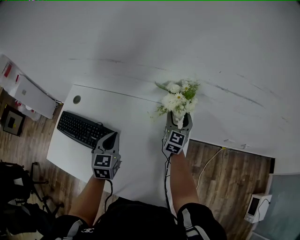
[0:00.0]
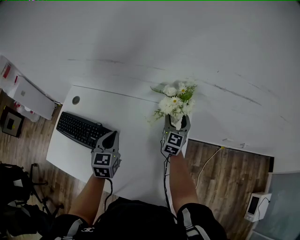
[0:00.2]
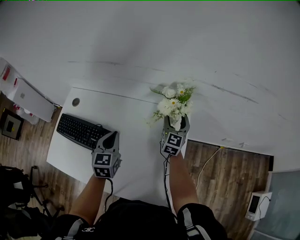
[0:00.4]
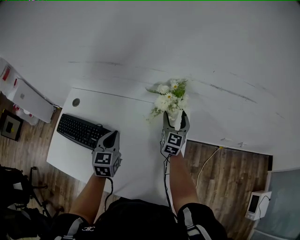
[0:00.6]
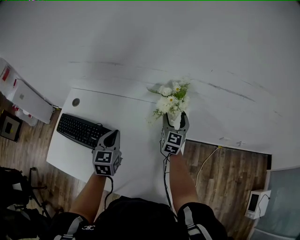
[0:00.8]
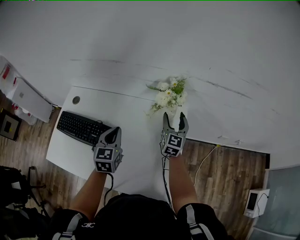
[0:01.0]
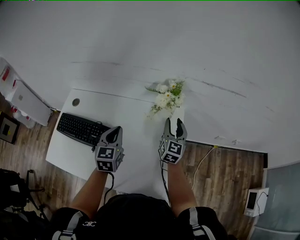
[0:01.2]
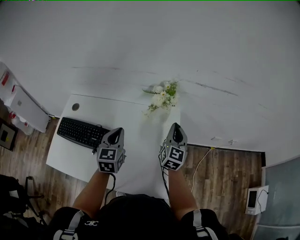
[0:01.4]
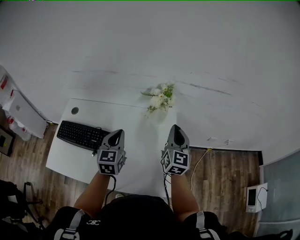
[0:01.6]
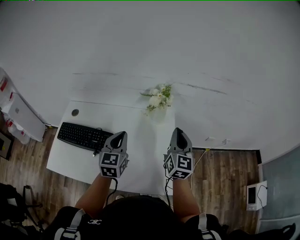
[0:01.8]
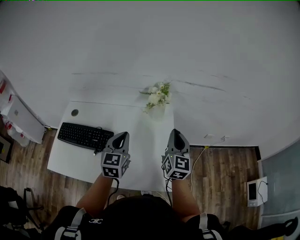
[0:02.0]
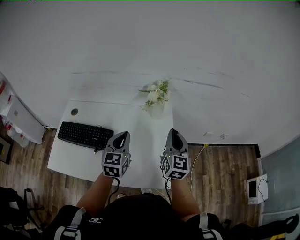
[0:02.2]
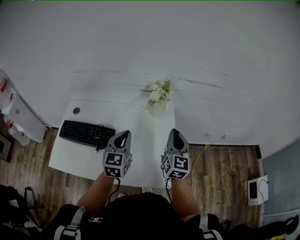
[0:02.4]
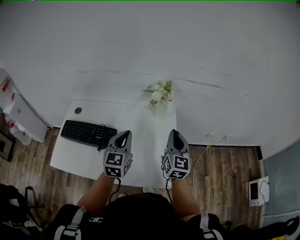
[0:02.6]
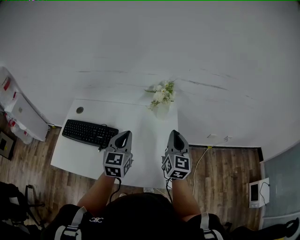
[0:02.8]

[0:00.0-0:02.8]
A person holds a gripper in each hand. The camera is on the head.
0.0 to 1.4 s: The left gripper moves upward and backward, roughly 10 cm. The right gripper travels backward and upward by some 20 cm, and closes up.
1.4 to 2.8 s: Both grippers travel together backward and upward, approximately 15 cm.

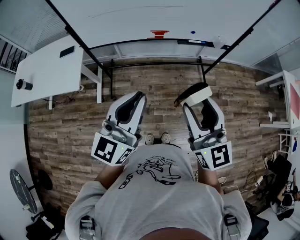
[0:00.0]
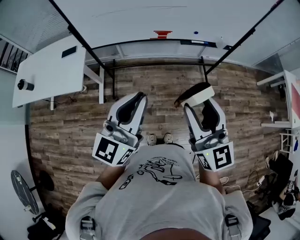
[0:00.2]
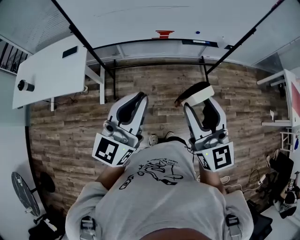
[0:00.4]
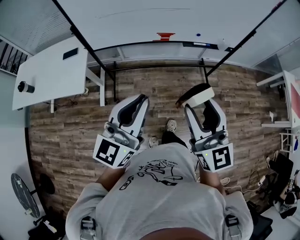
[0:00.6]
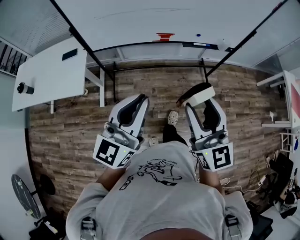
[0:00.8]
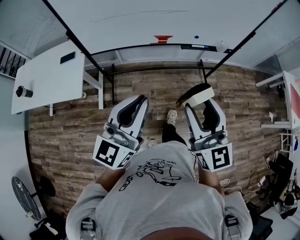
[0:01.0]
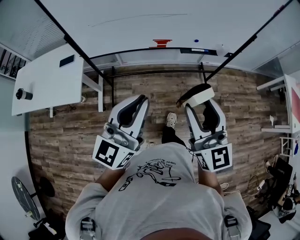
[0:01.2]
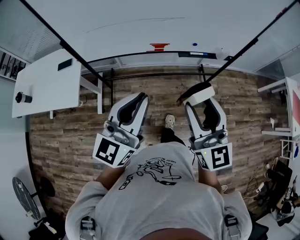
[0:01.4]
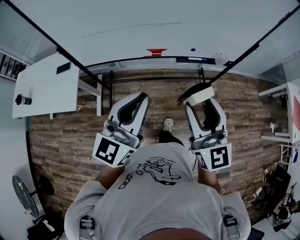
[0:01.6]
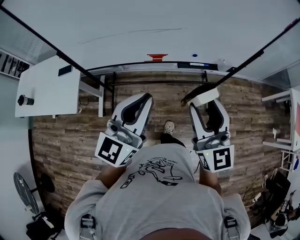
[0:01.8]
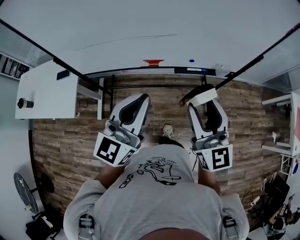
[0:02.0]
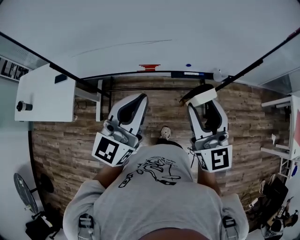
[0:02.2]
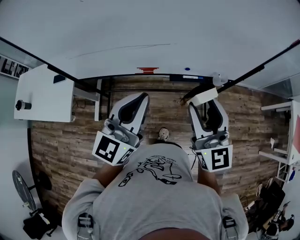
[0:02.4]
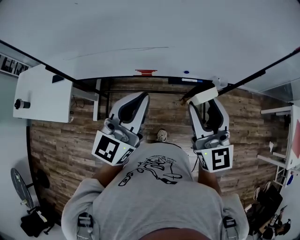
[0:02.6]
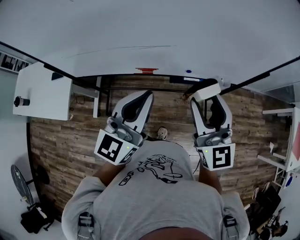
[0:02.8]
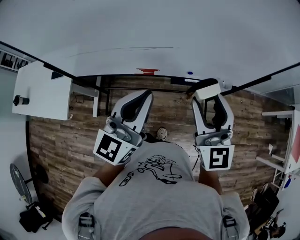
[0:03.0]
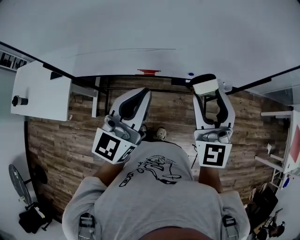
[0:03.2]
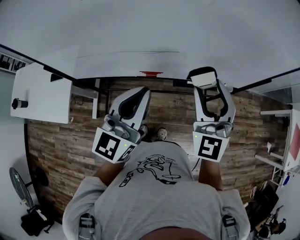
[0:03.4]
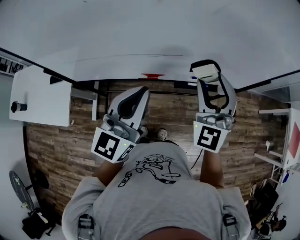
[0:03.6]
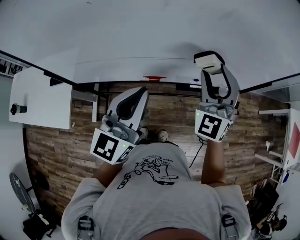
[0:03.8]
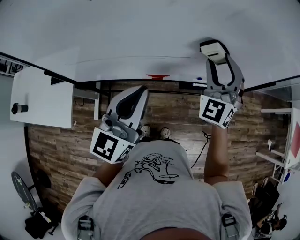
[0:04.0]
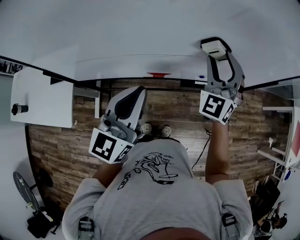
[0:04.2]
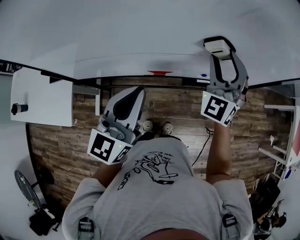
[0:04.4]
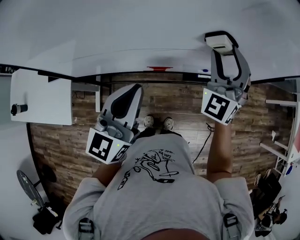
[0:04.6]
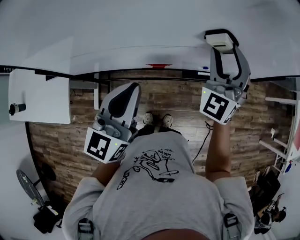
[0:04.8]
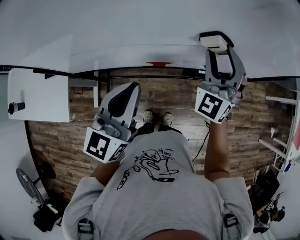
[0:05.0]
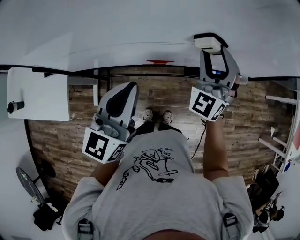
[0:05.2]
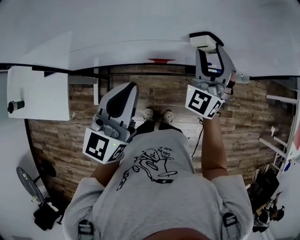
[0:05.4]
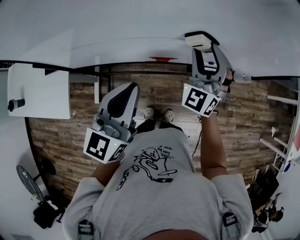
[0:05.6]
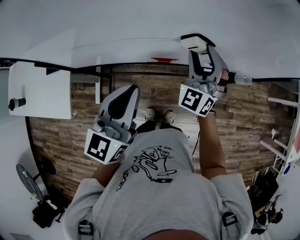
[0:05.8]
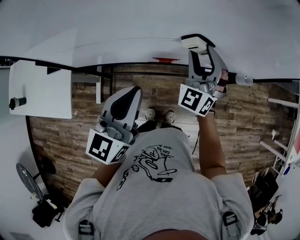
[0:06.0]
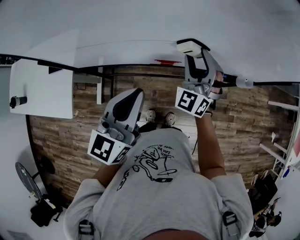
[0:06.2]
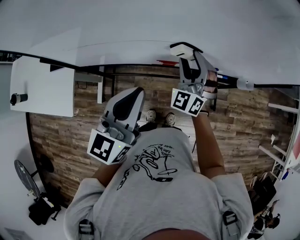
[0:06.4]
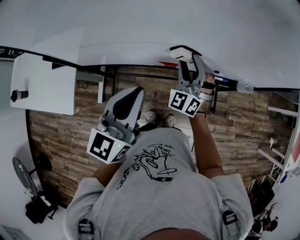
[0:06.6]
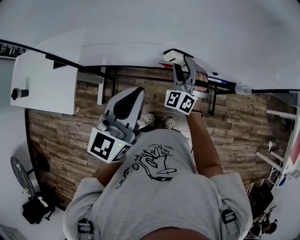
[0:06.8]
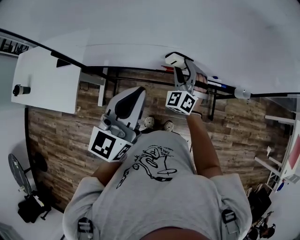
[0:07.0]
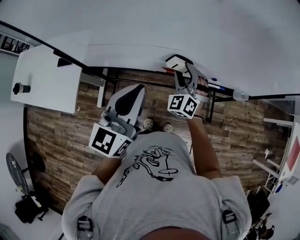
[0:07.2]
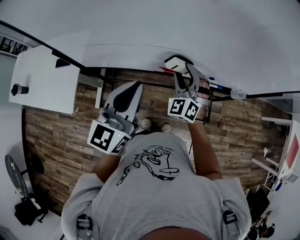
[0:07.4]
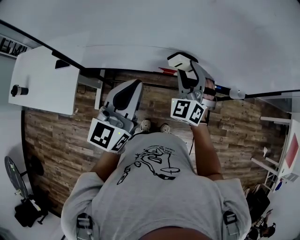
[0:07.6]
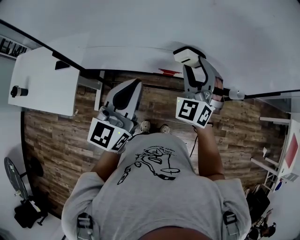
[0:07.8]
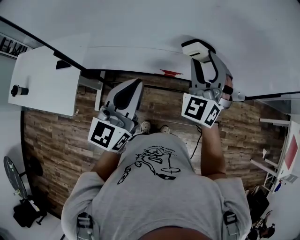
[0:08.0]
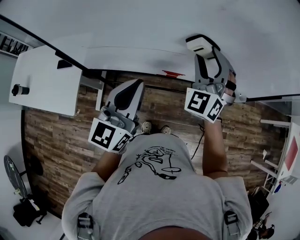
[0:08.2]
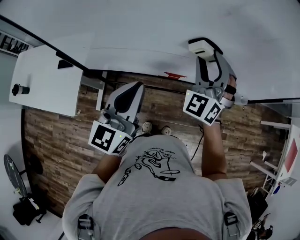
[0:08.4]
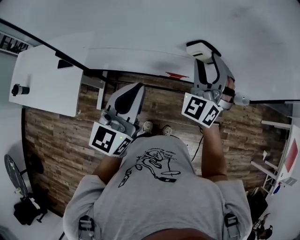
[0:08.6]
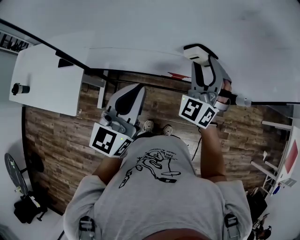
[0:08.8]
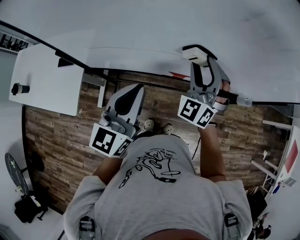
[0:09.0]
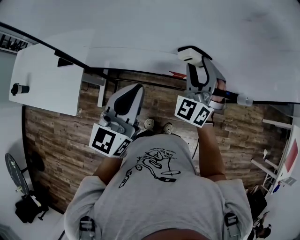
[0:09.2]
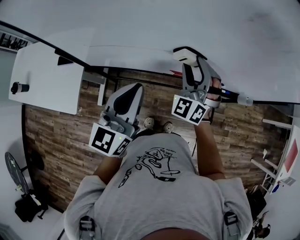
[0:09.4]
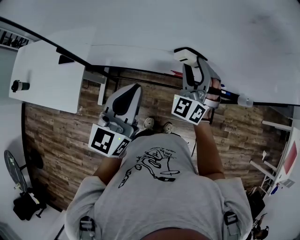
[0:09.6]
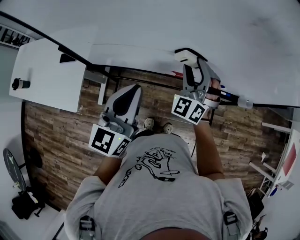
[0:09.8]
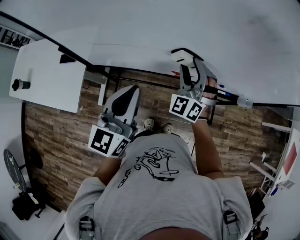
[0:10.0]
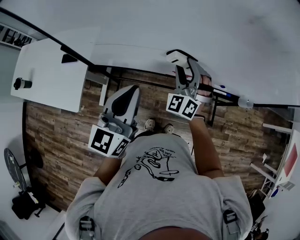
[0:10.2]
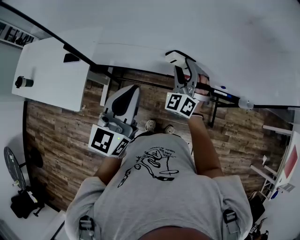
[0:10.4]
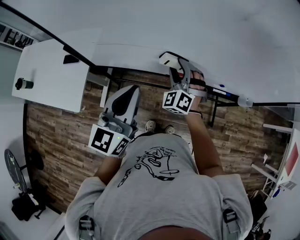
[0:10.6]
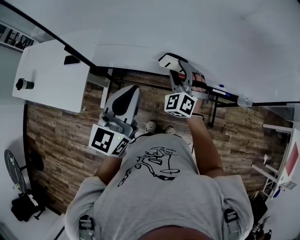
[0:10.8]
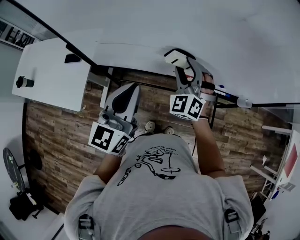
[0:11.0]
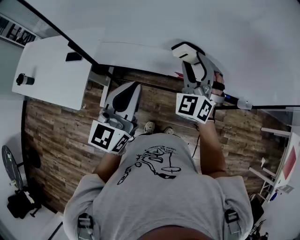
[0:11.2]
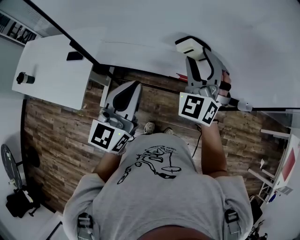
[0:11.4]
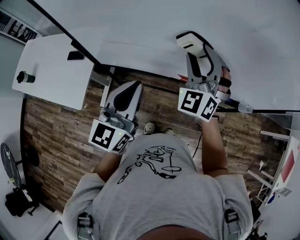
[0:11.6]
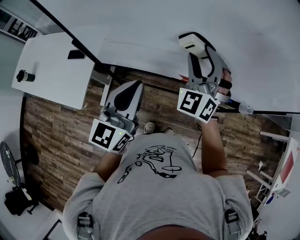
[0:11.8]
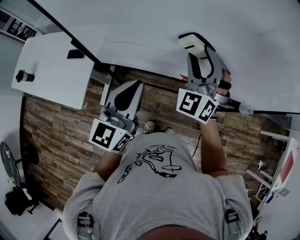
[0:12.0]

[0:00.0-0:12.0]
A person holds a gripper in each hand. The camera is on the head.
0.0 to 1.6 s: Both grippers travel together forward, about 15 cm.
1.6 to 3.0 s: The left gripper moves forward and to the right, roughly 20 cm. Meanwhile the right gripper moves forward, about 20 cm.
3.0 to 4.4 s: The right gripper heads forward, covering about 15 cm, and turns by approximately 40 degrees. The left gripper is displaced to the left by about 10 cm.
4.4 to 6.0 s: The left gripper moves roughly 5 cm; the right gripper moves downward and to the left, approximately 15 cm.
6.0 to 7.6 s: The right gripper shifts approximately 10 cm backward and to the left, and travels downward and back again, approximately 10 cm each way.
9.0 to 10.4 s: The right gripper is displaced downward and to the left by some 10 cm.
10.4 to 12.0 s: The right gripper heads upward, covering some 15 cm.

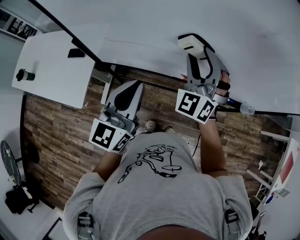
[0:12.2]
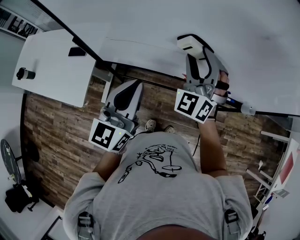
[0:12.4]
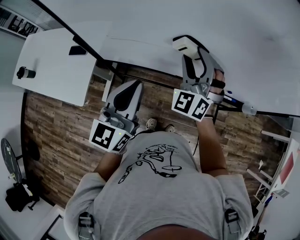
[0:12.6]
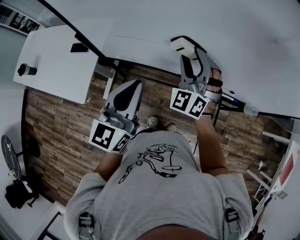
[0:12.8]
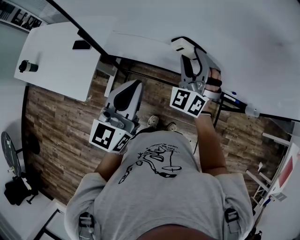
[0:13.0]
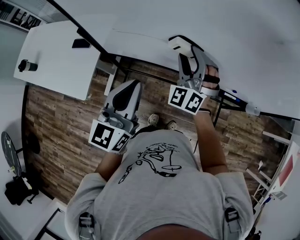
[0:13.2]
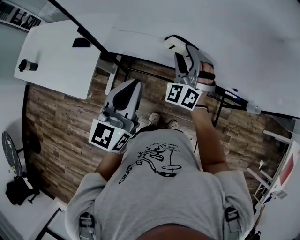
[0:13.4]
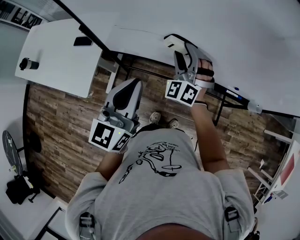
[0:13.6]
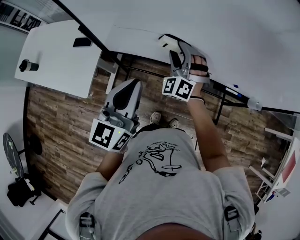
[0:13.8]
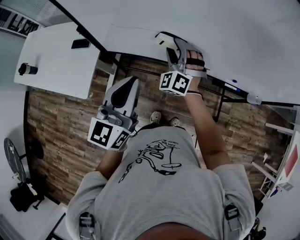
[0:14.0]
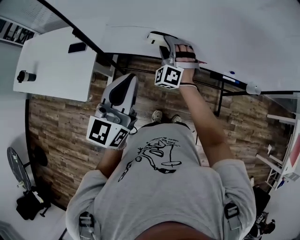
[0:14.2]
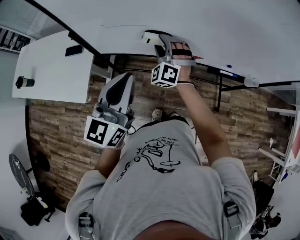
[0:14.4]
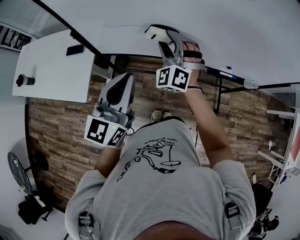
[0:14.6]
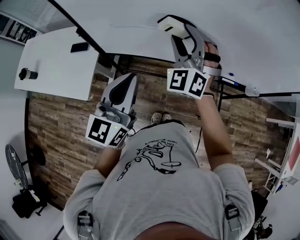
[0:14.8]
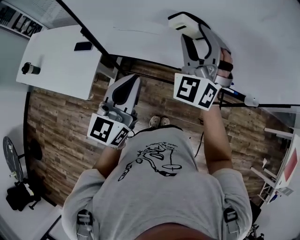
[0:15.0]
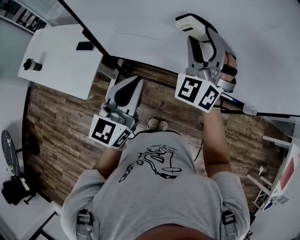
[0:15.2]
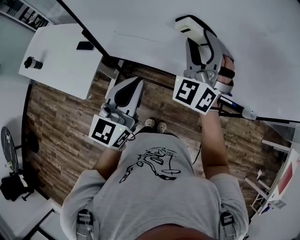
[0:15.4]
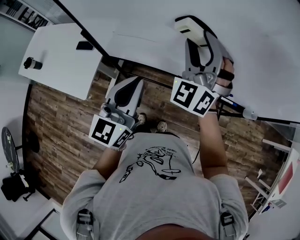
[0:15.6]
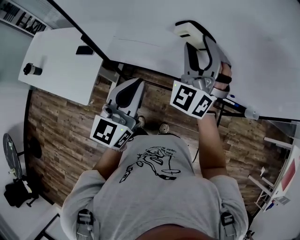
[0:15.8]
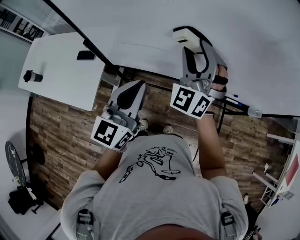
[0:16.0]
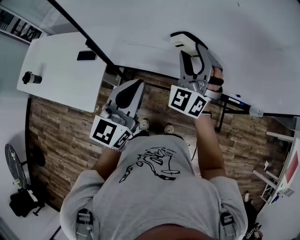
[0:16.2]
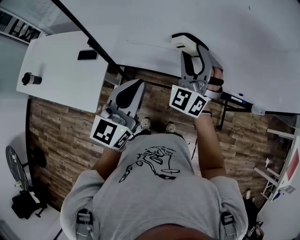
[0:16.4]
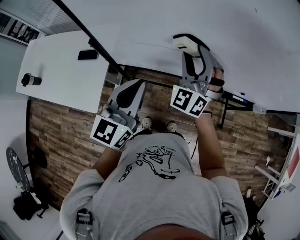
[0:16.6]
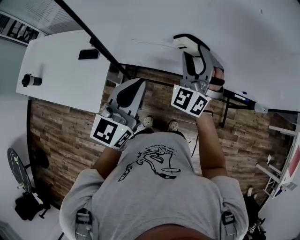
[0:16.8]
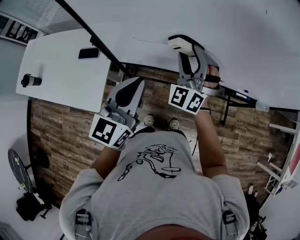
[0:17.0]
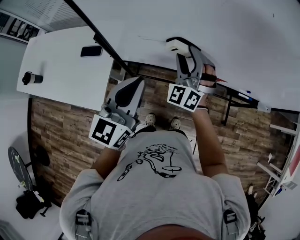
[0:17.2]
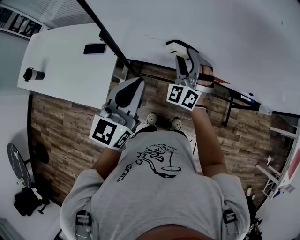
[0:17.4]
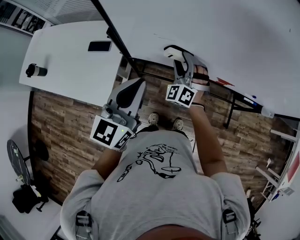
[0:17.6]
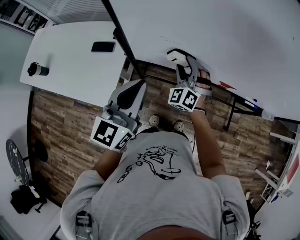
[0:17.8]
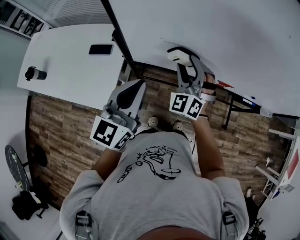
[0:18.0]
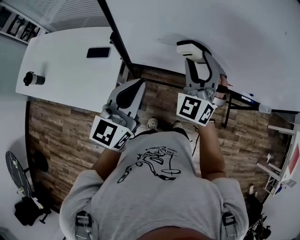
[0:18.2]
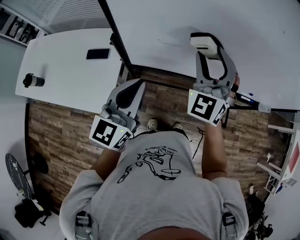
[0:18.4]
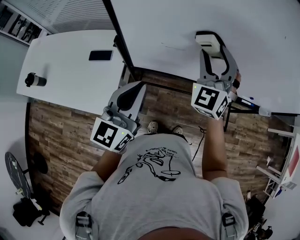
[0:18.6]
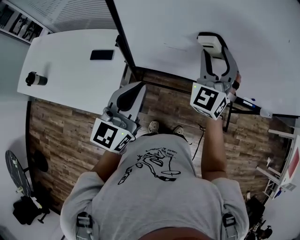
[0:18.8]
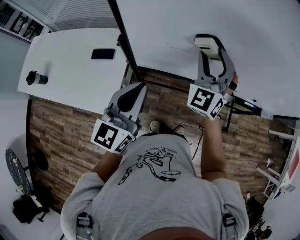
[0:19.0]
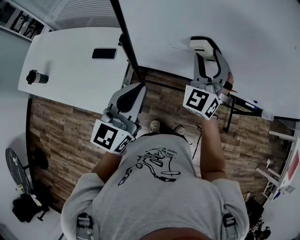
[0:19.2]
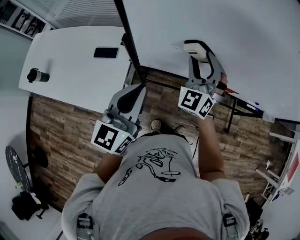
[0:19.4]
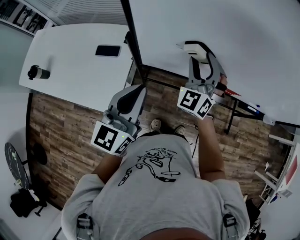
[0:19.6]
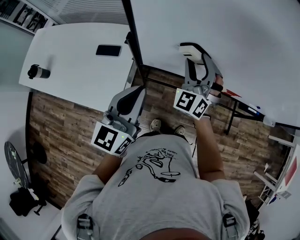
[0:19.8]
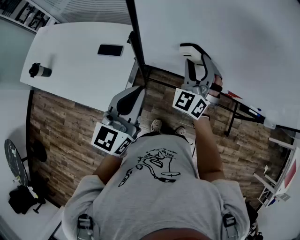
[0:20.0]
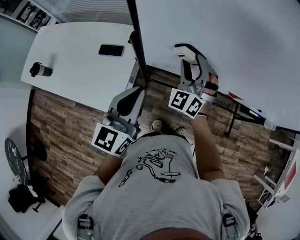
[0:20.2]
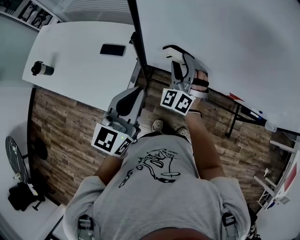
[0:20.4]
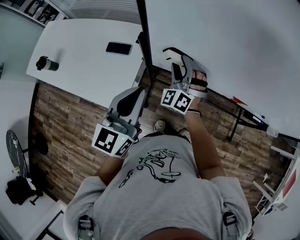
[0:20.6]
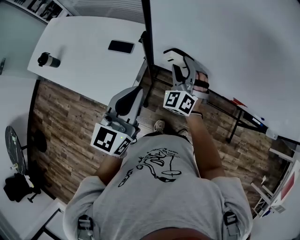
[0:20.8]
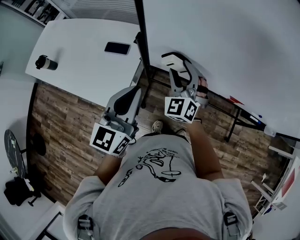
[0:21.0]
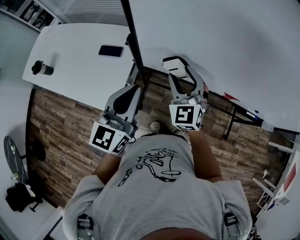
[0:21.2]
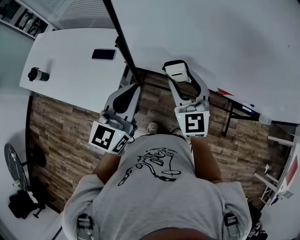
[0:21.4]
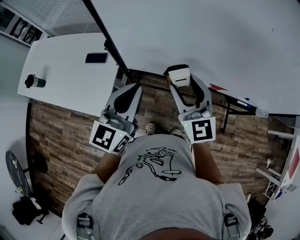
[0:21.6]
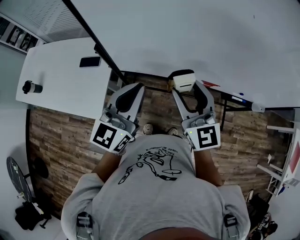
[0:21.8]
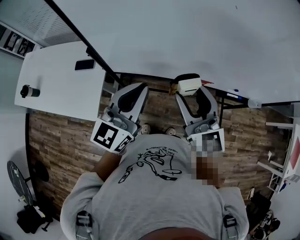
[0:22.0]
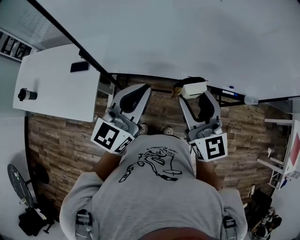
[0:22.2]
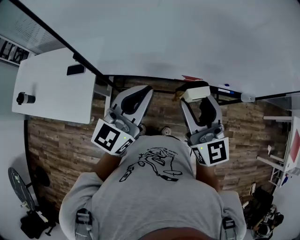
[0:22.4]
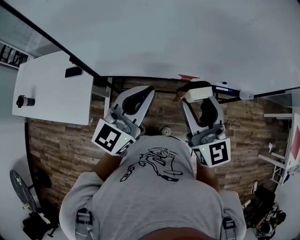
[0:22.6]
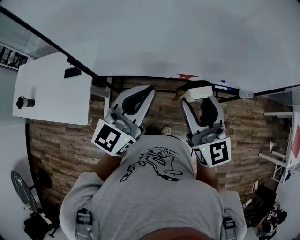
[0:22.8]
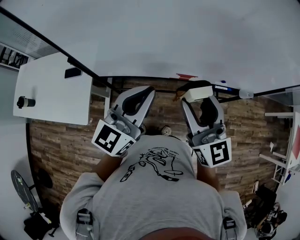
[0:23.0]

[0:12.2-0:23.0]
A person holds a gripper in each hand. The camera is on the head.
12.2 to 13.8 s: The right gripper is displaced downward and to the left by roughly 15 cm. Meanwhile the left gripper changes place by about 5 cm.
13.8 to 15.2 s: The right gripper moves upward, roughly 20 cm.
15.2 to 16.8 s: The left gripper heads to the left, covering about 10 cm; the right gripper goes roughly 15 cm downward and to the left.
16.8 to 18.4 s: The right gripper travels to the left by some 5 cm, and moves about 15 cm downward and comes back. Meanwhile the left gripper shifts roughly 10 cm to the left.
18.4 to 20.0 s: The left gripper shifts approximately 5 cm to the left. The right gripper is displaced downward and to the left by roughly 15 cm.
20.0 to 21.4 s: The right gripper heads backward, covering some 10 cm, moves approximately 5 cm downward and comes back, and rotates roughly 40 degrees.
21.4 to 23.0 s: The two grippers go some 25 cm to the right. The right gripper turns by some 20 degrees. Meanwhile the left gripper changes its angle by about 20 degrees.
